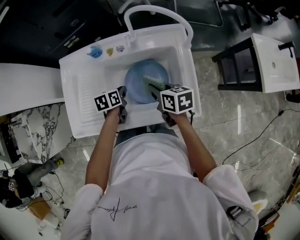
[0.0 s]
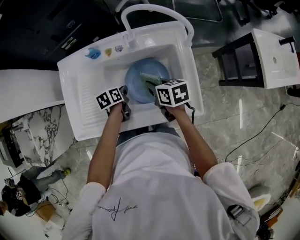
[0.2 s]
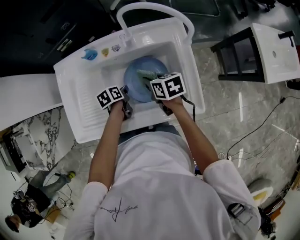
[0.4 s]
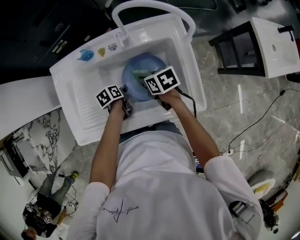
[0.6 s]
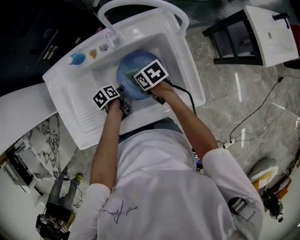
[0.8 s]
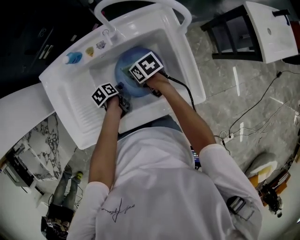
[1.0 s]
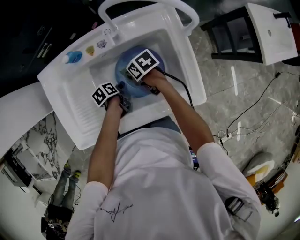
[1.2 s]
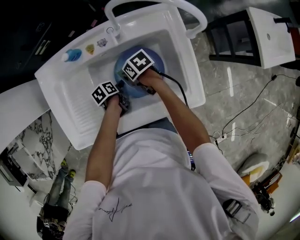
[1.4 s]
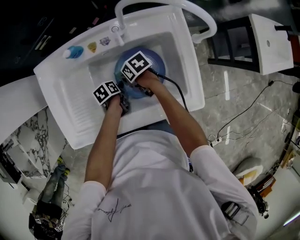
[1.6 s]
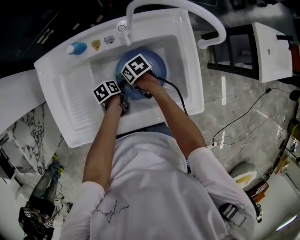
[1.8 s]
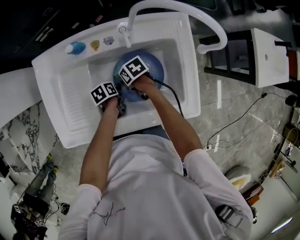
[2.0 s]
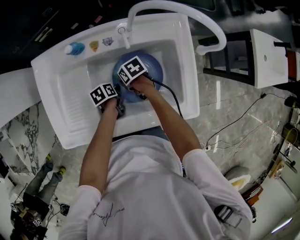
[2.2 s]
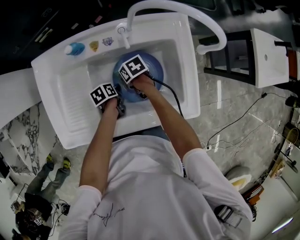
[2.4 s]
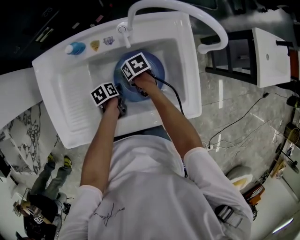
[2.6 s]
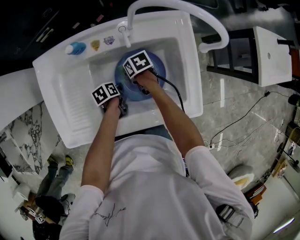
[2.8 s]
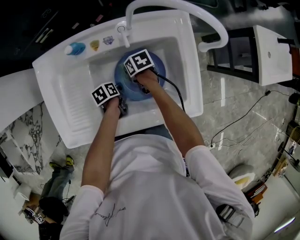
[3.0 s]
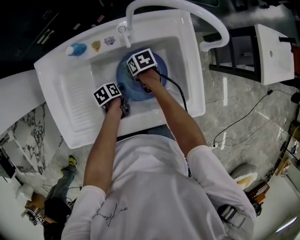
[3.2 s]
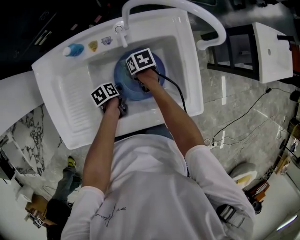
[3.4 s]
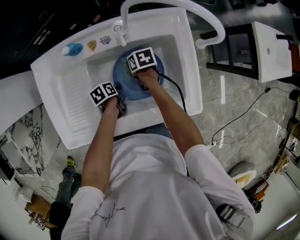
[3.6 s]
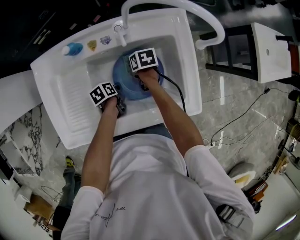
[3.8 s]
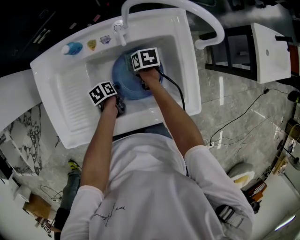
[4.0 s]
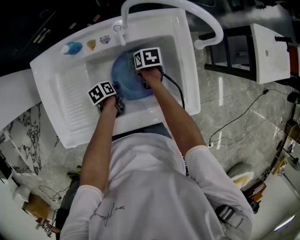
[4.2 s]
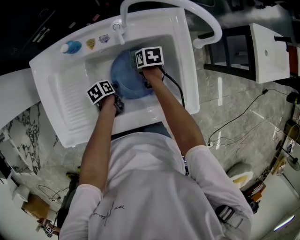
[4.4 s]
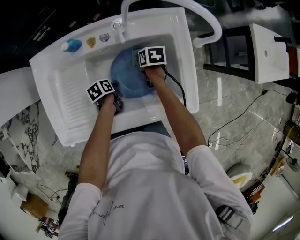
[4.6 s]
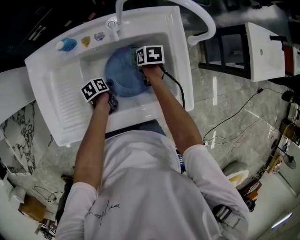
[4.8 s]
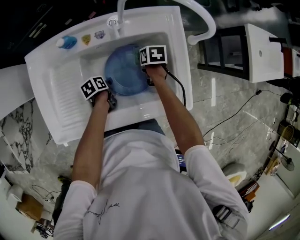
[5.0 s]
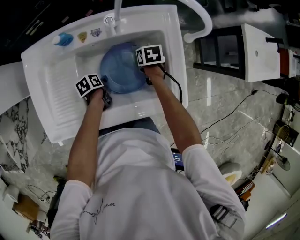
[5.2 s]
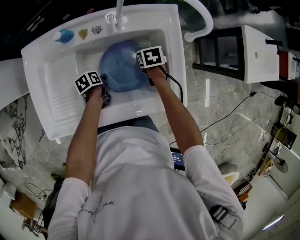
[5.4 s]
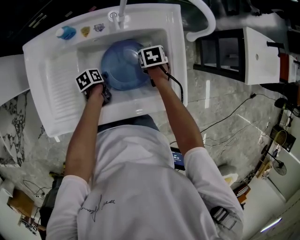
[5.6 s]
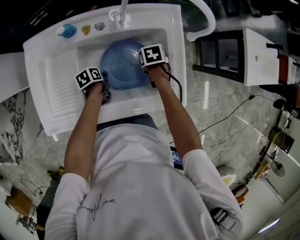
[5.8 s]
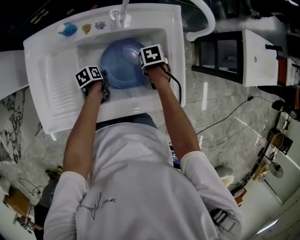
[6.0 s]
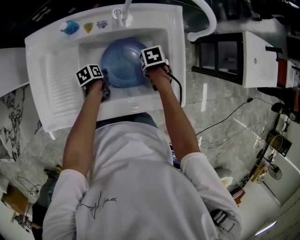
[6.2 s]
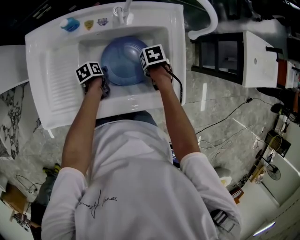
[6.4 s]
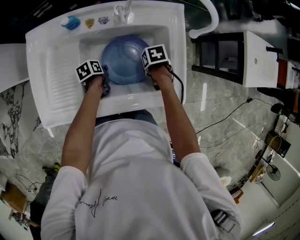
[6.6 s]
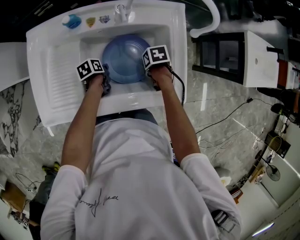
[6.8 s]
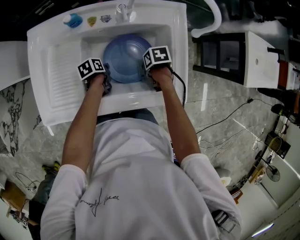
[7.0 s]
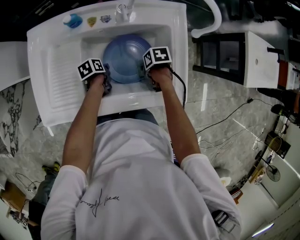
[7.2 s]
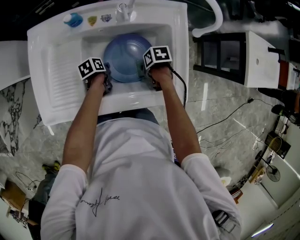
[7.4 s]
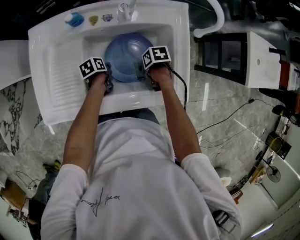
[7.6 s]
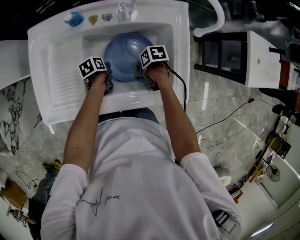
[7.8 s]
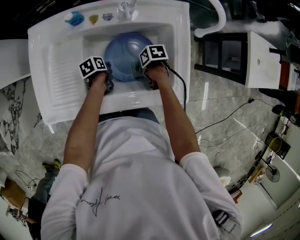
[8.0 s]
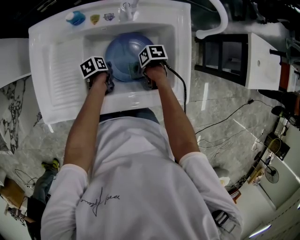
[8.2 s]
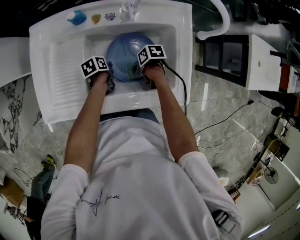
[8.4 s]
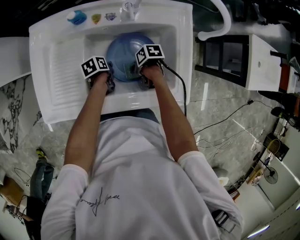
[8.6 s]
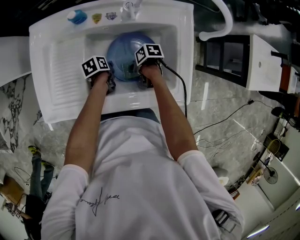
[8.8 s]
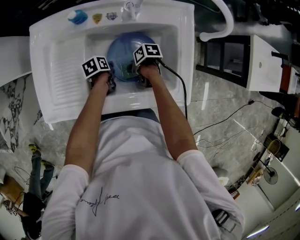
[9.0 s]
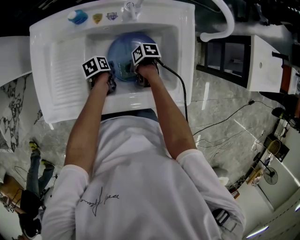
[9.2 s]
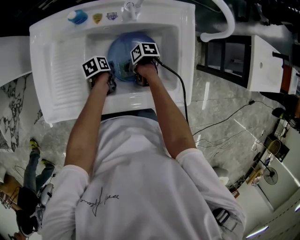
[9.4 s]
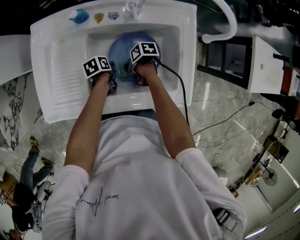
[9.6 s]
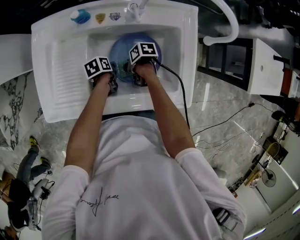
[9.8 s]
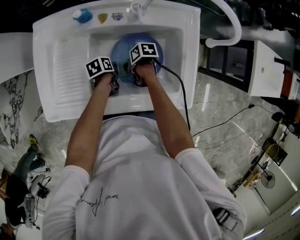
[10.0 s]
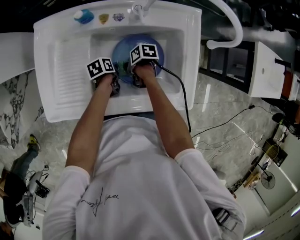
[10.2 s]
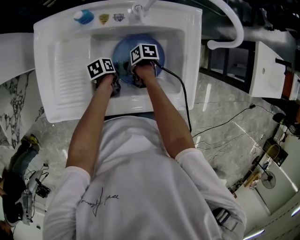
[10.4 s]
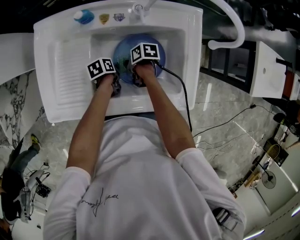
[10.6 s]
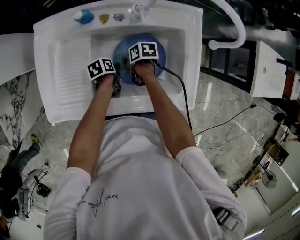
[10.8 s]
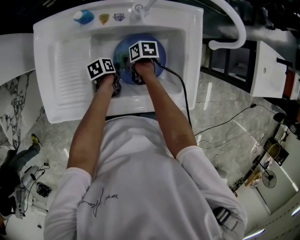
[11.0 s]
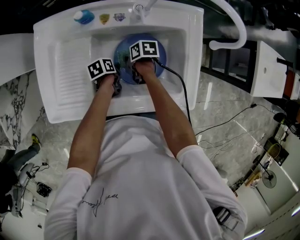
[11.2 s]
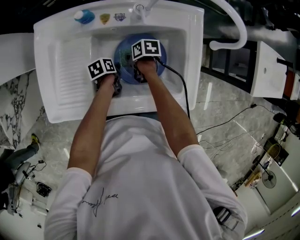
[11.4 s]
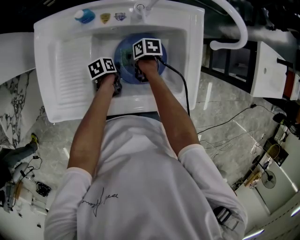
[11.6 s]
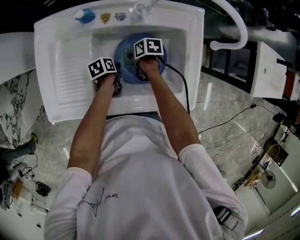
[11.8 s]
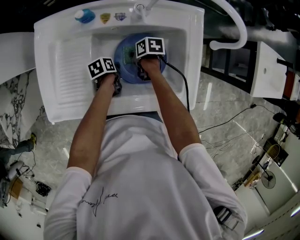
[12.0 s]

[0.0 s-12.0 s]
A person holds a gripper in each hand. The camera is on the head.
0.0 to 1.6 s: The two grippers go some 15 cm downward. The left gripper swivels some 20 degrees. The right gripper turns by about 30 degrees.
1.6 to 3.0 s: The right gripper ends up roughly 5 cm from where it was.
3.0 to 4.4 s: The right gripper ends up some 10 cm from where it was.
4.4 to 6.0 s: The right gripper moves some 10 cm, and rotates approximately 20 degrees.
6.0 to 7.6 s: The right gripper shifts by about 10 cm, and changes its angle by some 20 degrees.
7.6 to 9.0 s: The right gripper shifts by about 5 cm.
9.0 to 10.4 s: The right gripper ends up roughly 5 cm from where it was.
10.4 to 12.0 s: The right gripper moves some 5 cm.

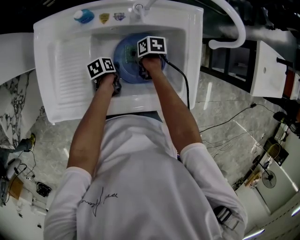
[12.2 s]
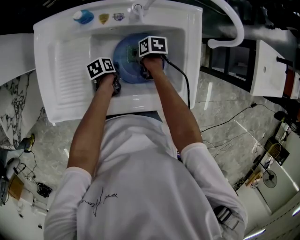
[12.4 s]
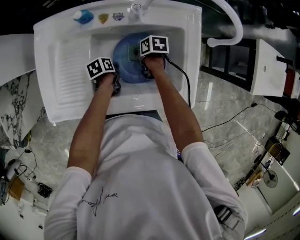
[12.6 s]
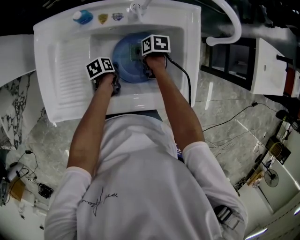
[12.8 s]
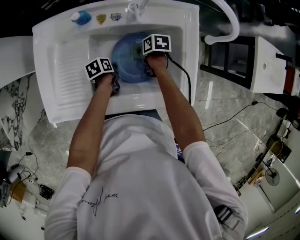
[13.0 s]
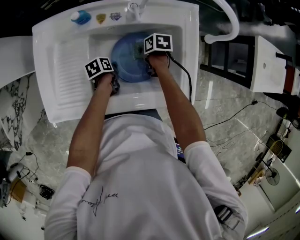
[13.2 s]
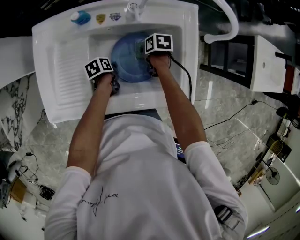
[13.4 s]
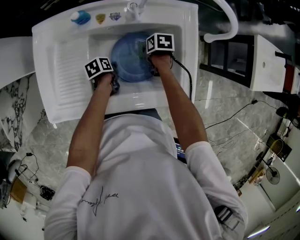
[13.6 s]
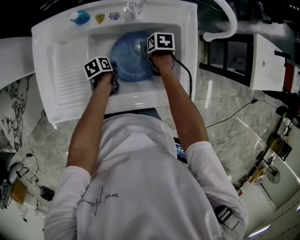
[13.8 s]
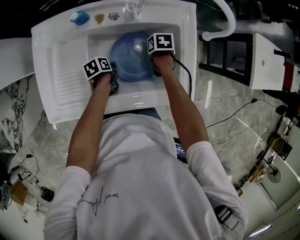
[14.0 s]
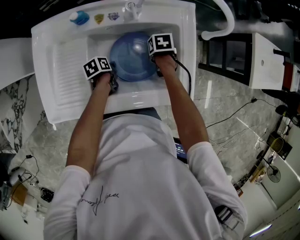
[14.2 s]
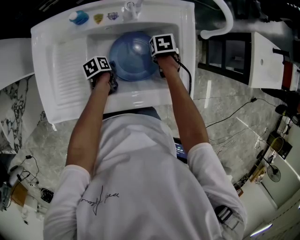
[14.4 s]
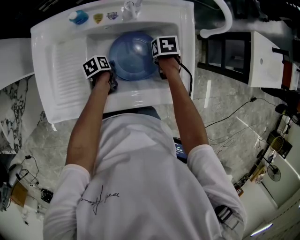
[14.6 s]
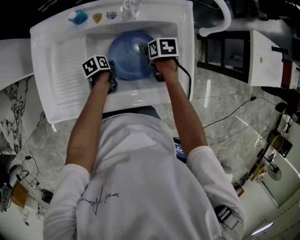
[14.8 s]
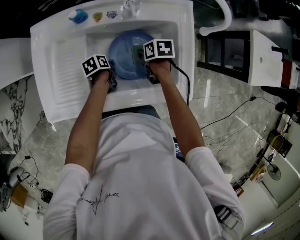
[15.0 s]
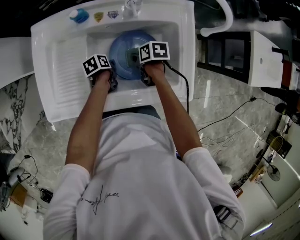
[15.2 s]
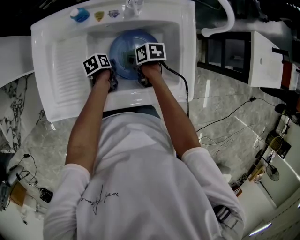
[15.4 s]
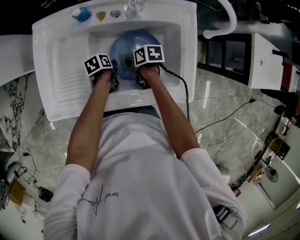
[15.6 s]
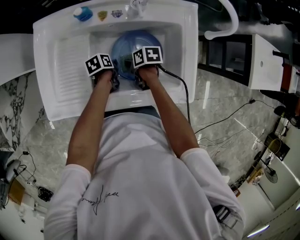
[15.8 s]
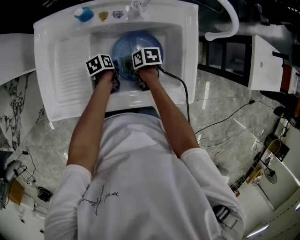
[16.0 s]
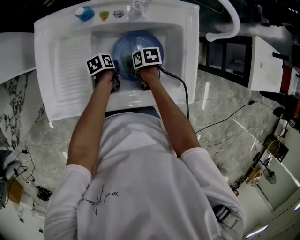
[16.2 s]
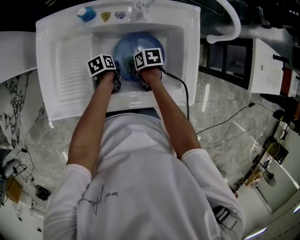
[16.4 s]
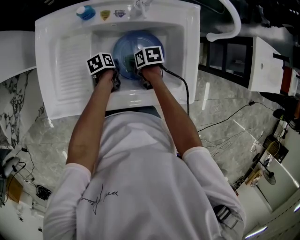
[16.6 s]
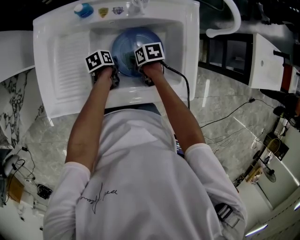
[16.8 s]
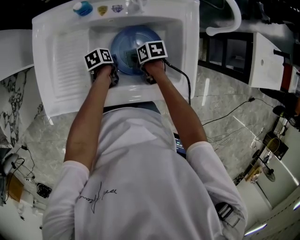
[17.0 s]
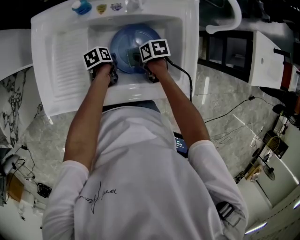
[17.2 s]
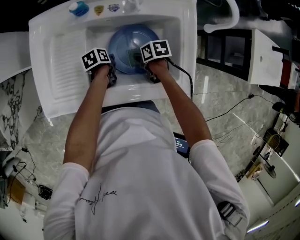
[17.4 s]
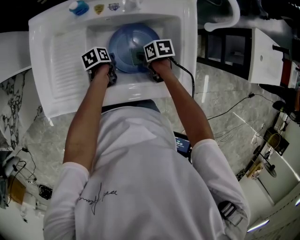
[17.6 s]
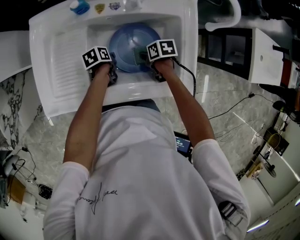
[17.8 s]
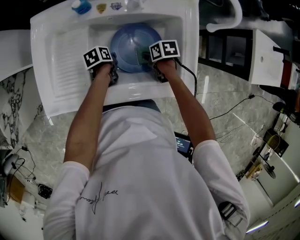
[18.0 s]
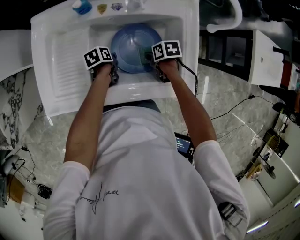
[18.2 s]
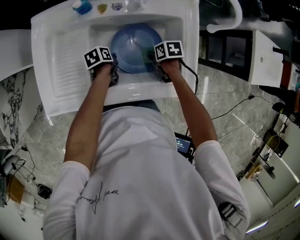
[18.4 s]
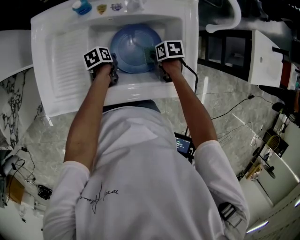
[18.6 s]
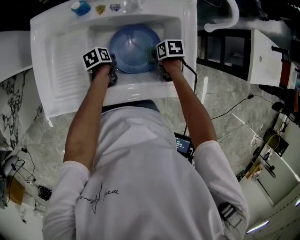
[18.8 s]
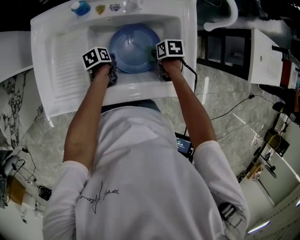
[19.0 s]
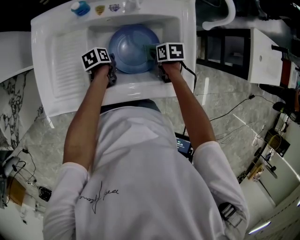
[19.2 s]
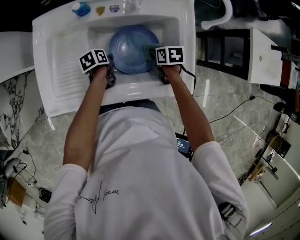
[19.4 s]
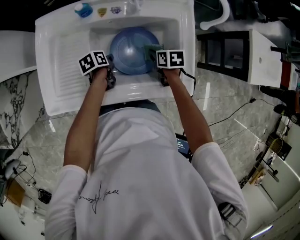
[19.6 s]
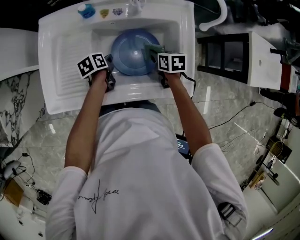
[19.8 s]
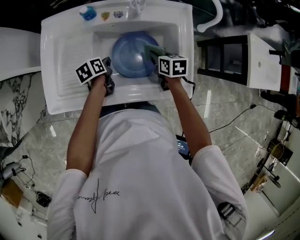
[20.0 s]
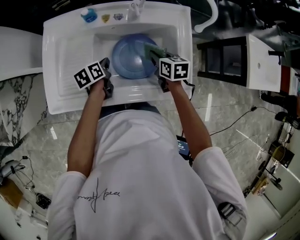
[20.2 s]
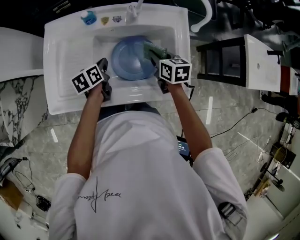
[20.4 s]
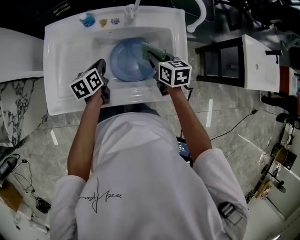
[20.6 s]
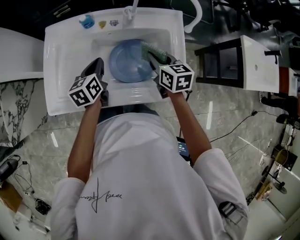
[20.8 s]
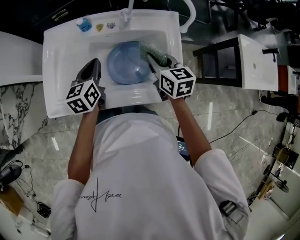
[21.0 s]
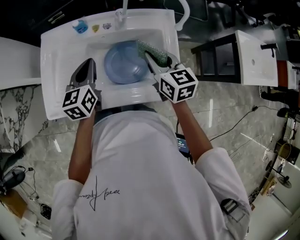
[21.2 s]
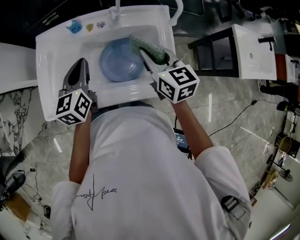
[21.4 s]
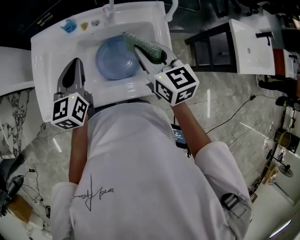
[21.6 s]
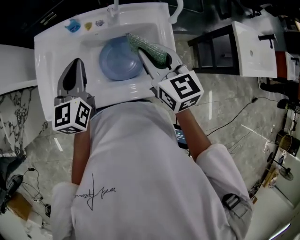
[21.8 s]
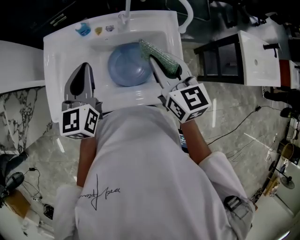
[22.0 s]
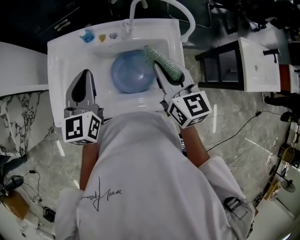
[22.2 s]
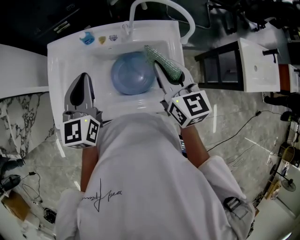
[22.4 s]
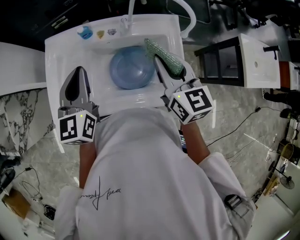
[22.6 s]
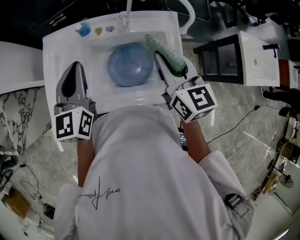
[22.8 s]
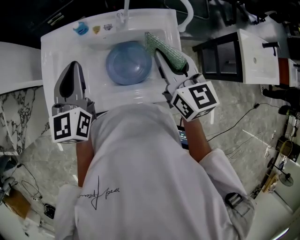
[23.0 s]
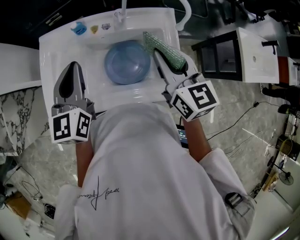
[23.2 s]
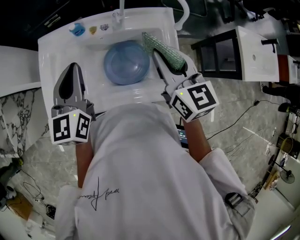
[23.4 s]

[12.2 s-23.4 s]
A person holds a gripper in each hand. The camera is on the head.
12.2 to 13.8 s: The right gripper shifts by roughly 10 cm.
13.8 to 15.4 s: The right gripper ends up approximately 10 cm from where it was.
15.4 to 17.0 s: The grippers make only small movements.
17.0 to 18.6 s: The right gripper moves approximately 10 cm.
18.6 to 20.2 s: The two grippers go some 10 cm upward. The left gripper swivels roughly 20 degrees, while the right gripper changes its angle by some 30 degrees.
20.2 to 21.8 s: Both grippers move upward, some 25 cm. The right gripper changes its angle by about 30 degrees. The left gripper tilts its fingers approximately 30 degrees upward.
21.8 to 23.4 s: The grippers stay close to where they were, moving slightly.

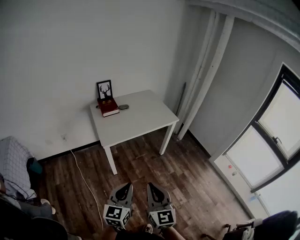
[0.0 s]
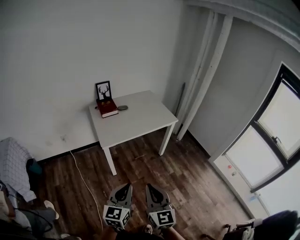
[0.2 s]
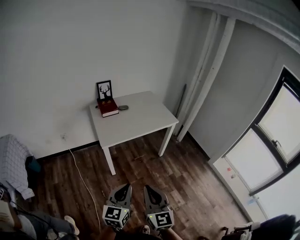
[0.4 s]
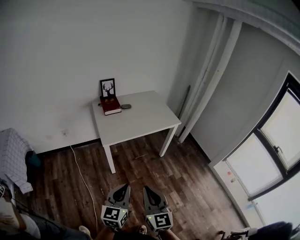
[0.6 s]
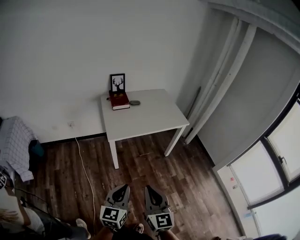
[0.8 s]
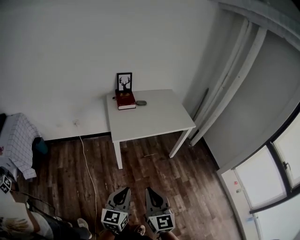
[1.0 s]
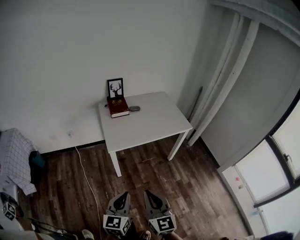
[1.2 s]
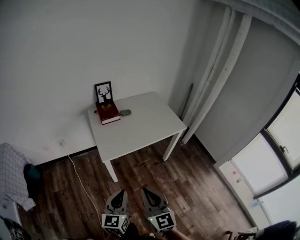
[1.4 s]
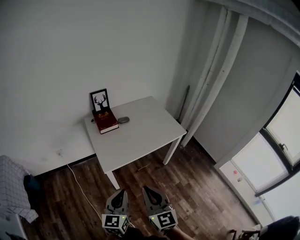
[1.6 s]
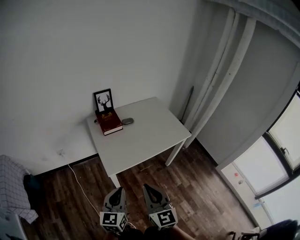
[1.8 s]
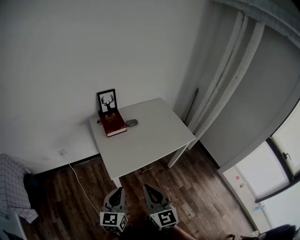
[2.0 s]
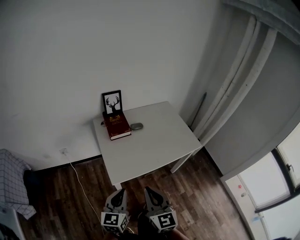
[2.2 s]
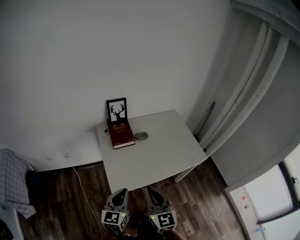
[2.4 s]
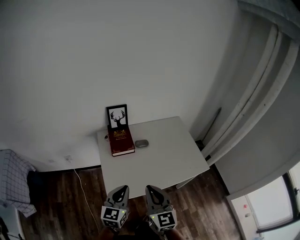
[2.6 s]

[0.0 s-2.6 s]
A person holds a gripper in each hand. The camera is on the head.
0.0 to 1.2 s: Both grippers travel together forward, approximately 5 cm.
1.2 to 2.6 s: The pair of grippers is taken forward, approximately 40 cm.
